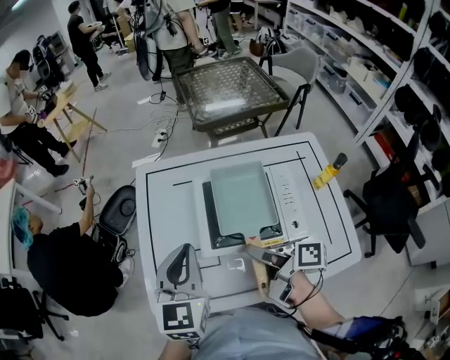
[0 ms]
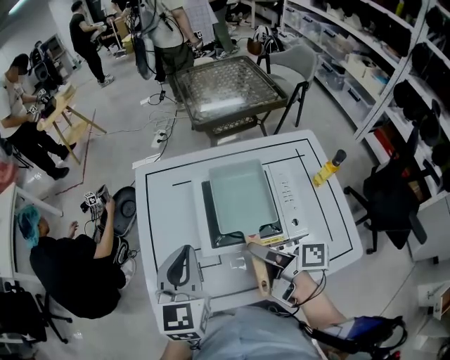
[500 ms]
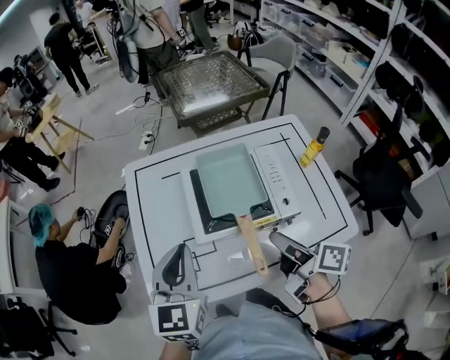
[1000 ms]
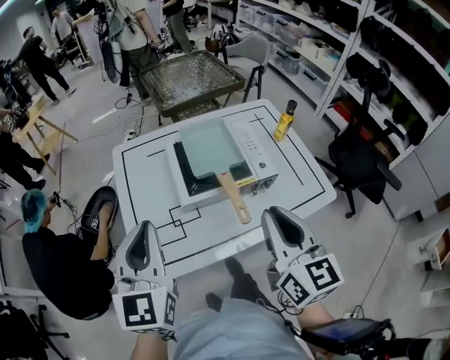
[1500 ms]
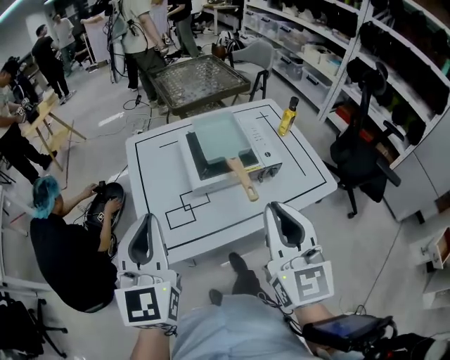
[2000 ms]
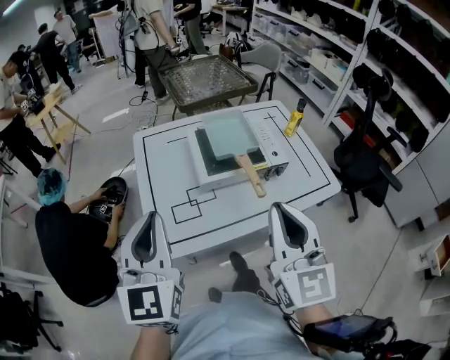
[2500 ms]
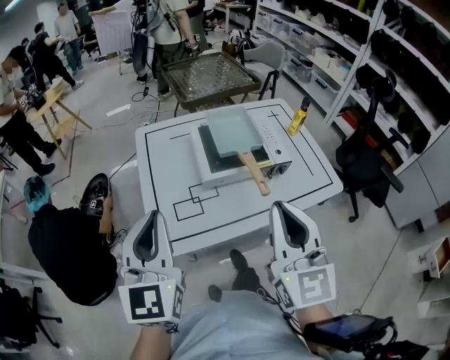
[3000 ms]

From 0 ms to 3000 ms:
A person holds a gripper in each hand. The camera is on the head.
From 0 ms to 1500 ms: The left gripper changes place by roughly 15 cm. The right gripper moves about 25 cm, and rotates around the line of its fingers by roughly 60 degrees, counterclockwise from behind.
From 1500 ms to 3000 ms: The left gripper goes approximately 10 cm backward and to the left. Meanwhile the right gripper moves backward, to the left and upward, approximately 15 cm, and turns by some 20 degrees.

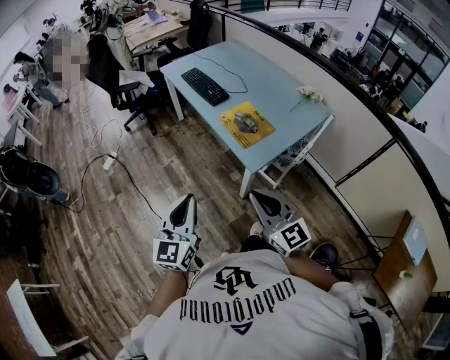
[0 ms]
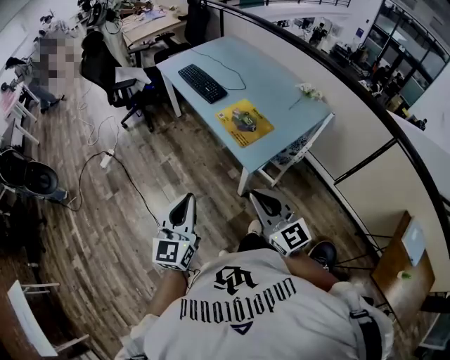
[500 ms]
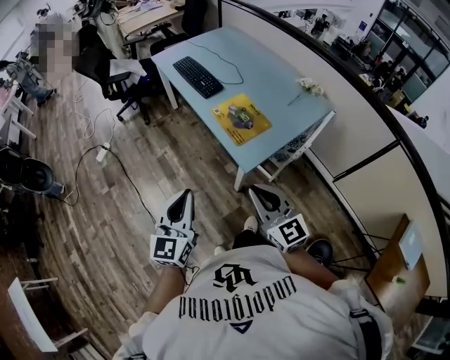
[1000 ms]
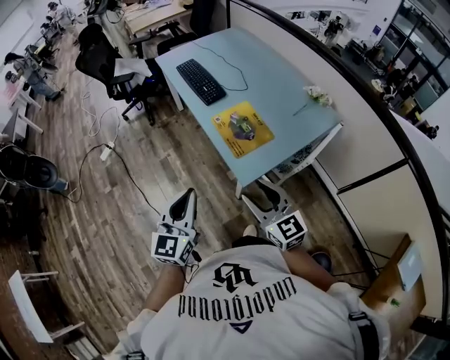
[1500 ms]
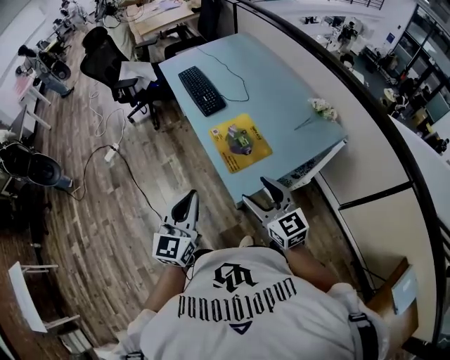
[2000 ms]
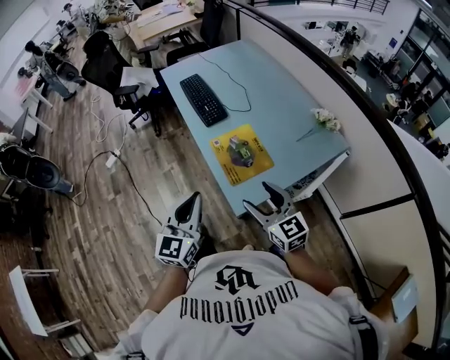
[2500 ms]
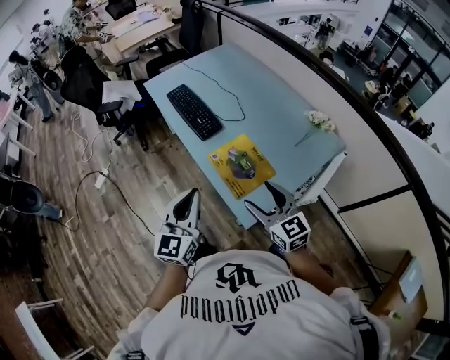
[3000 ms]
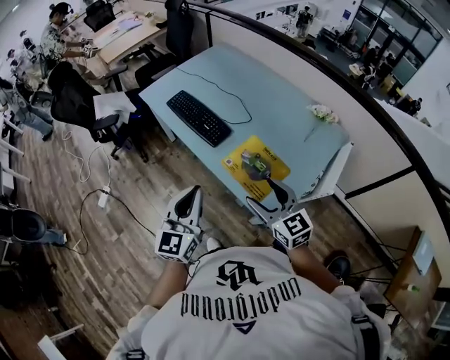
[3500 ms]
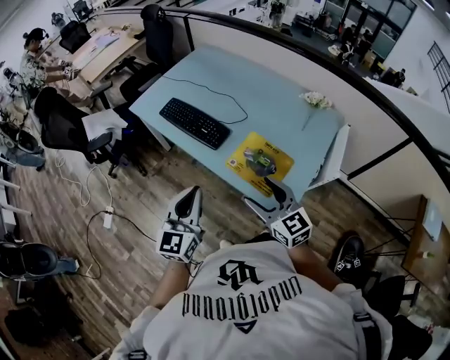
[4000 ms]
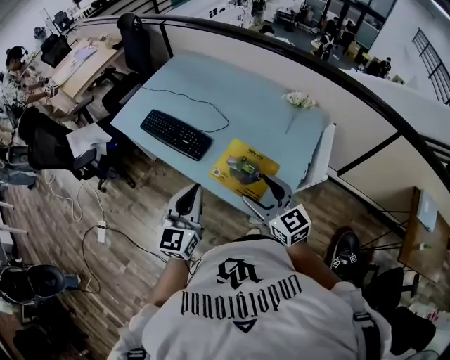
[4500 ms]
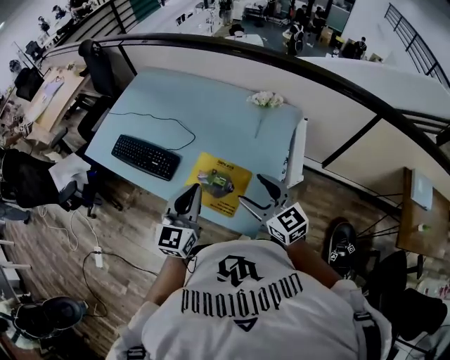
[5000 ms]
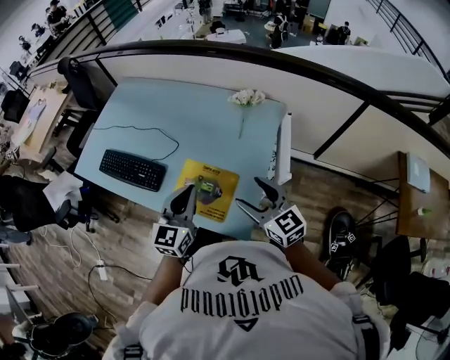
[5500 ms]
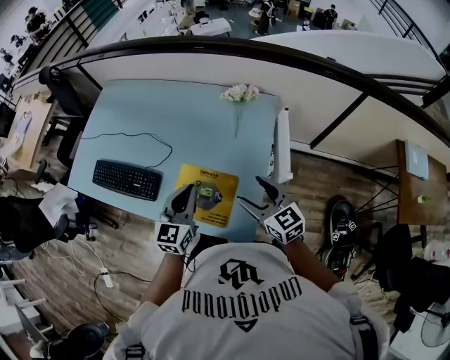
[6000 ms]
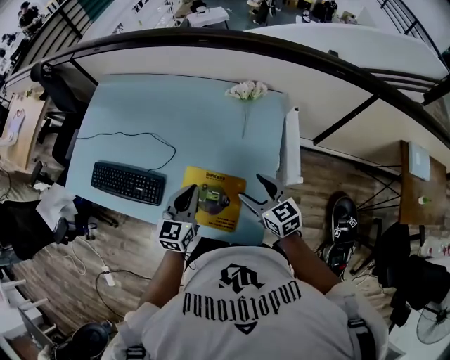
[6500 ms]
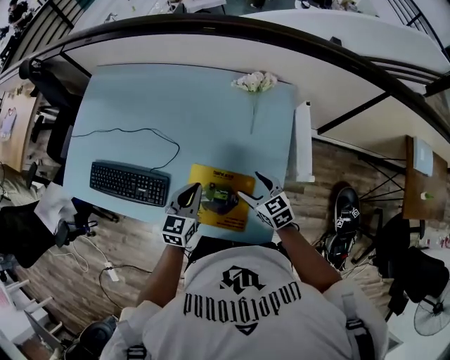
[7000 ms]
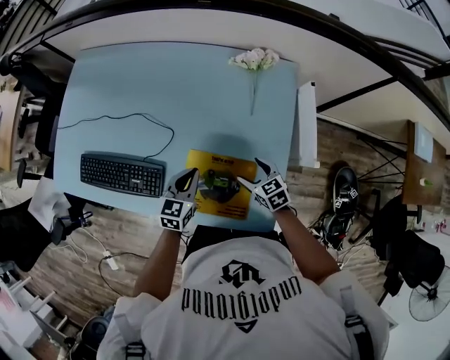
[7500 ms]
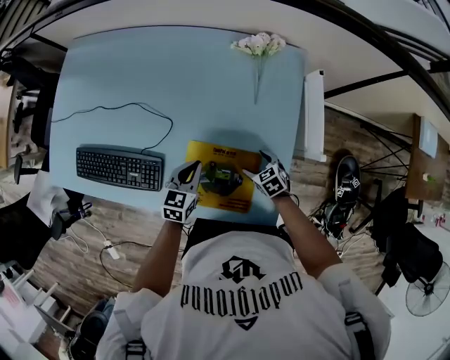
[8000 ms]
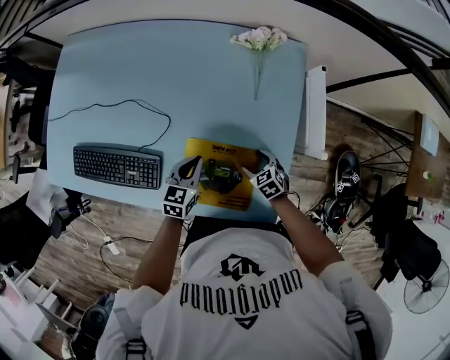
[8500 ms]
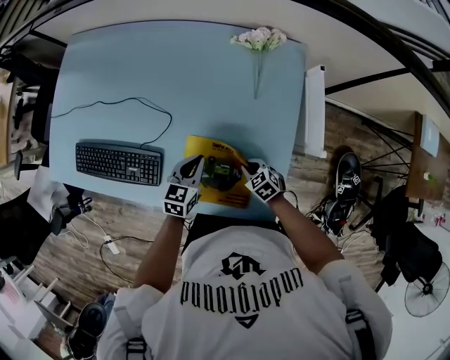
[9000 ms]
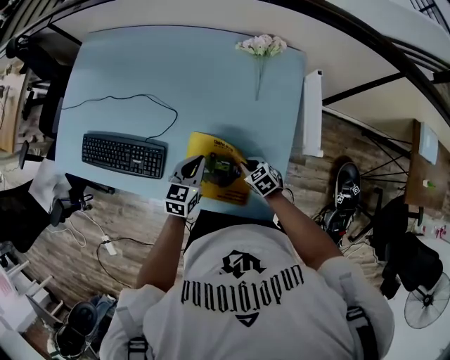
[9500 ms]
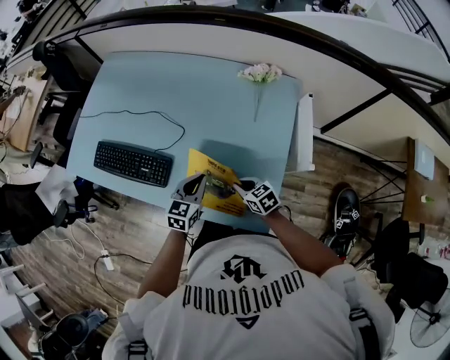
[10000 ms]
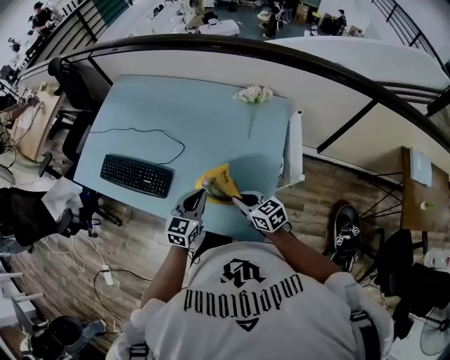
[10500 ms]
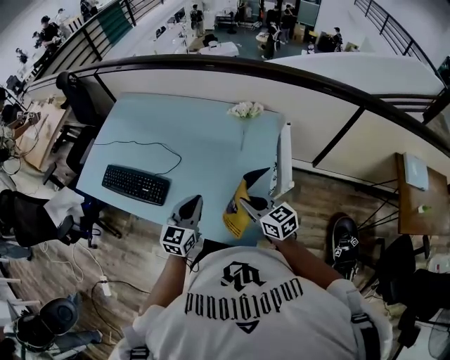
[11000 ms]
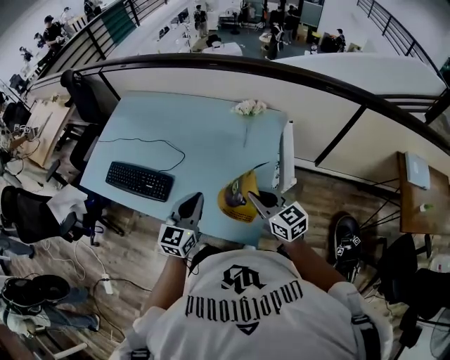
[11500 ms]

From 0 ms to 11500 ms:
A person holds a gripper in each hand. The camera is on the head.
From 0 ms to 2000 ms: The two grippers go some 25 cm forward and to the right. The right gripper opens.
From 2000 ms to 4000 ms: The right gripper heads to the left and forward, covering roughly 25 cm, and turns by roughly 20 degrees. The left gripper heads forward and to the left, covering roughly 30 cm, and changes its angle by approximately 20 degrees.
From 4000 ms to 6000 ms: Both grippers move to the right and forward, approximately 30 cm. The right gripper turns by approximately 20 degrees; the left gripper turns by approximately 30 degrees.
From 6000 ms to 7500 ms: Both grippers move downward and forward, approximately 25 cm. The right gripper changes its angle by roughly 30 degrees; the left gripper rotates approximately 20 degrees.
From 7500 ms to 9500 ms: The right gripper is displaced downward by about 10 cm, and closes up.
From 9500 ms to 11500 ms: The right gripper is displaced upward by some 35 cm, and tips its fingers upward by approximately 40 degrees. Meanwhile the left gripper moves upward and backward, some 25 cm, and swivels about 30 degrees.

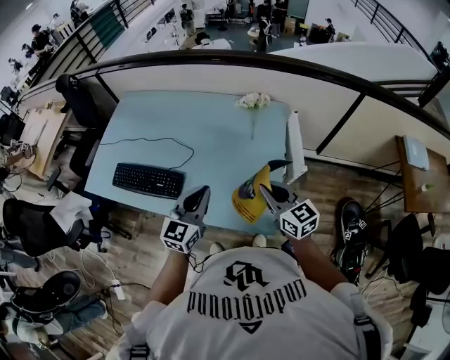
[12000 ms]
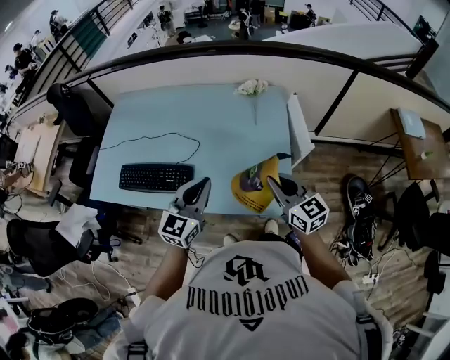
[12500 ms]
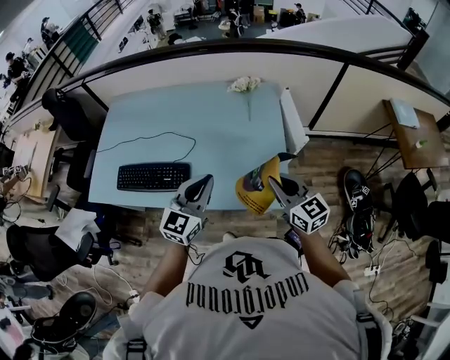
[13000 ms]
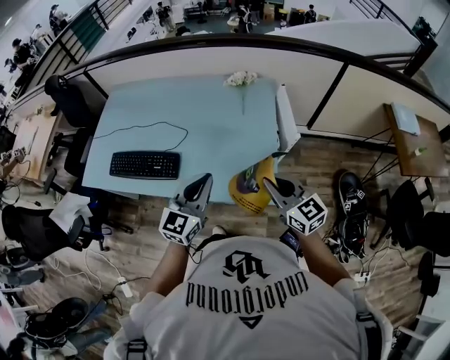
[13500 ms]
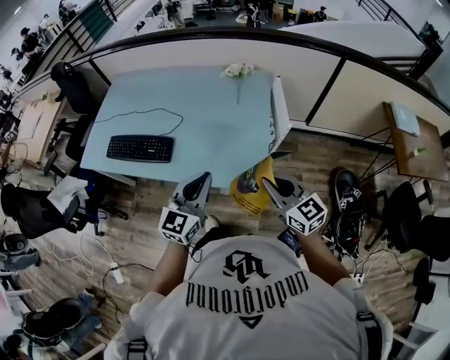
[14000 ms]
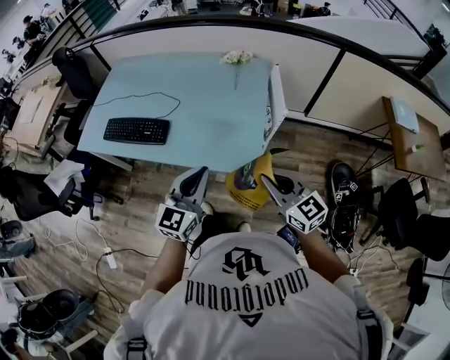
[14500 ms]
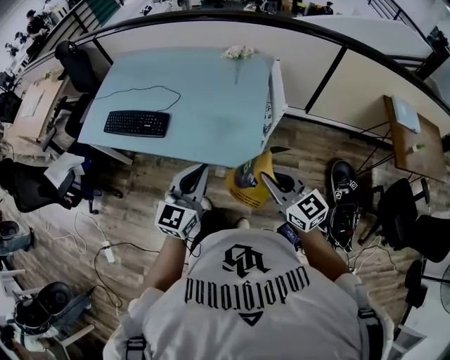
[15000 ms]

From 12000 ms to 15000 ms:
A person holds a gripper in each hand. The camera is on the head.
From 12000 ms to 13500 ms: The grippers both shift backward by roughly 10 cm.
From 13500 ms to 15000 ms: Both grippers move backward and to the right, approximately 15 cm.

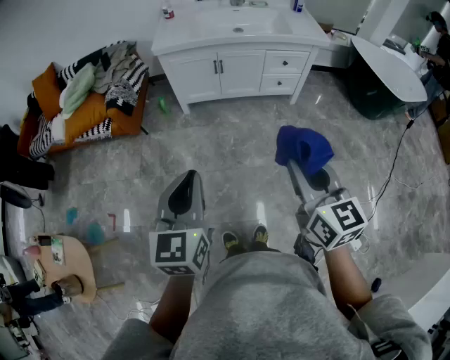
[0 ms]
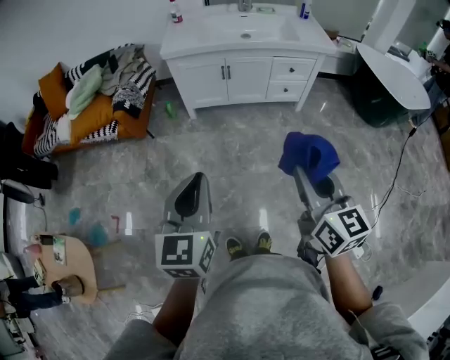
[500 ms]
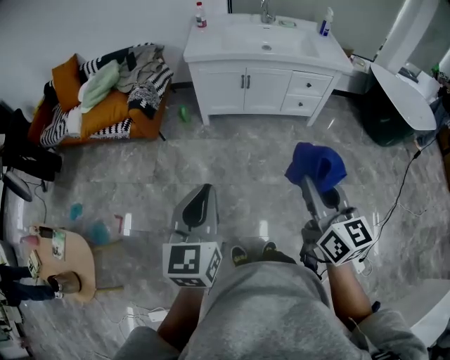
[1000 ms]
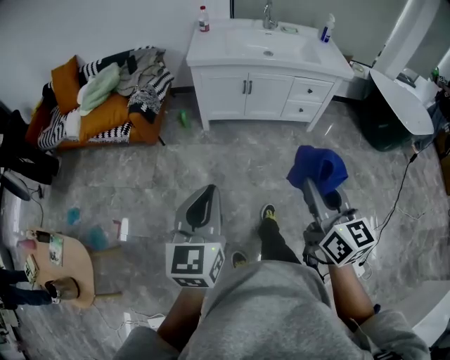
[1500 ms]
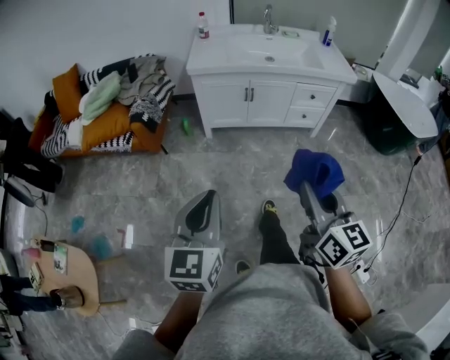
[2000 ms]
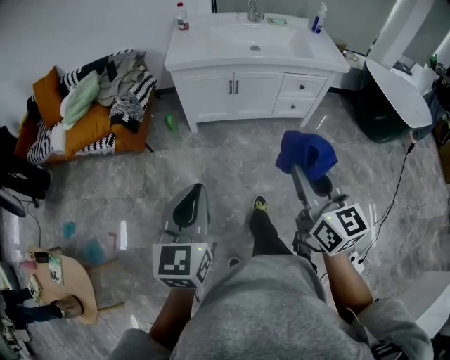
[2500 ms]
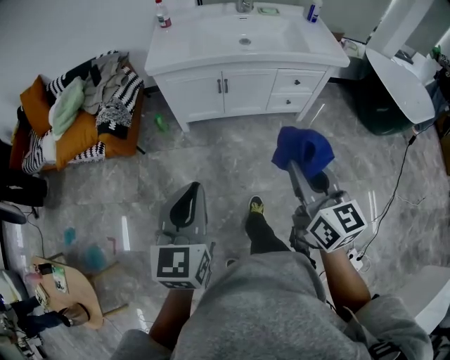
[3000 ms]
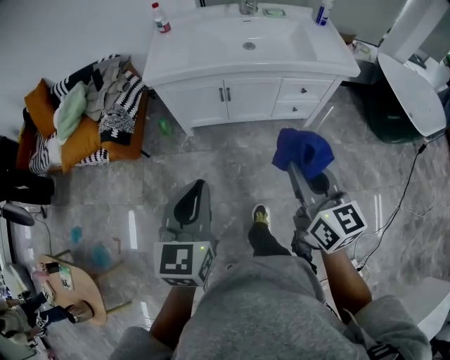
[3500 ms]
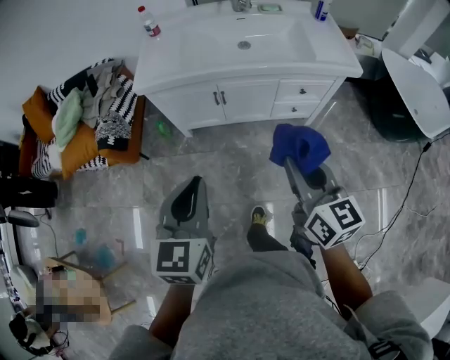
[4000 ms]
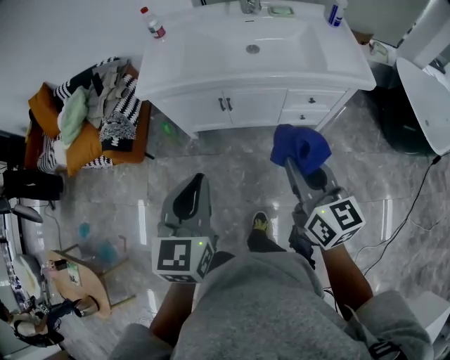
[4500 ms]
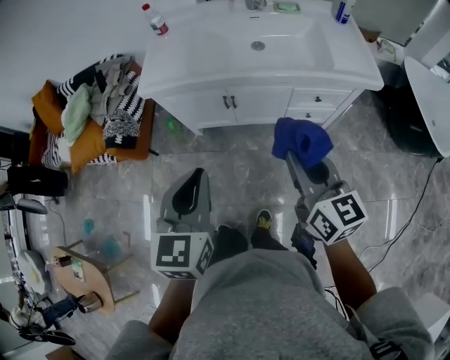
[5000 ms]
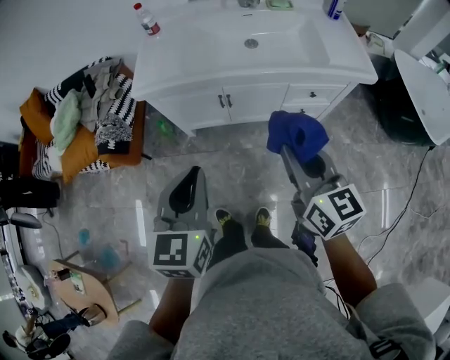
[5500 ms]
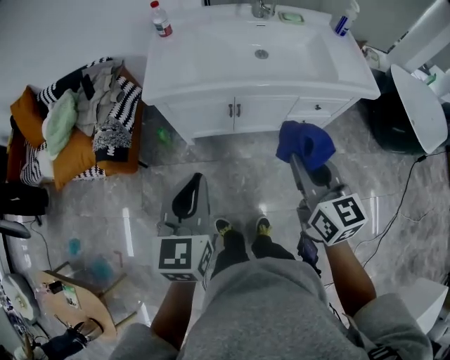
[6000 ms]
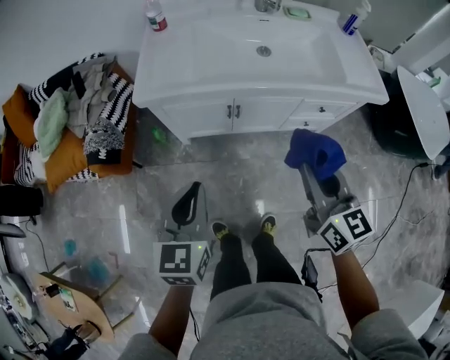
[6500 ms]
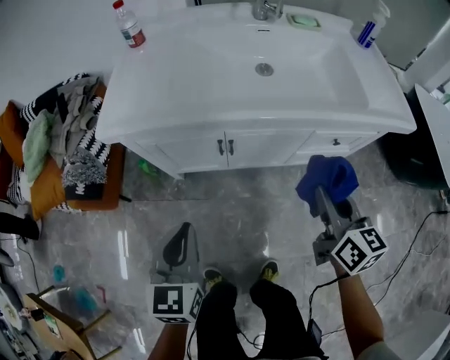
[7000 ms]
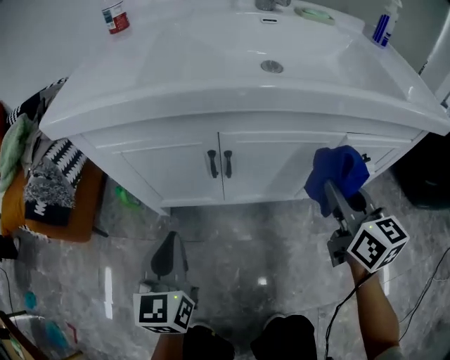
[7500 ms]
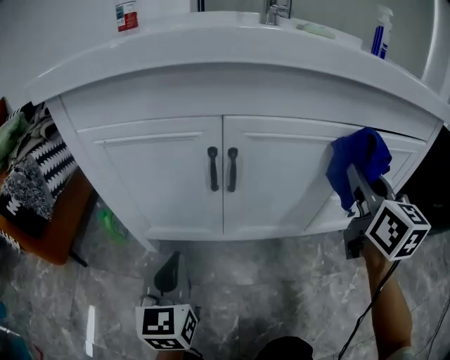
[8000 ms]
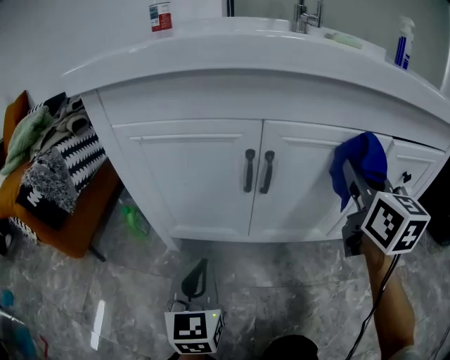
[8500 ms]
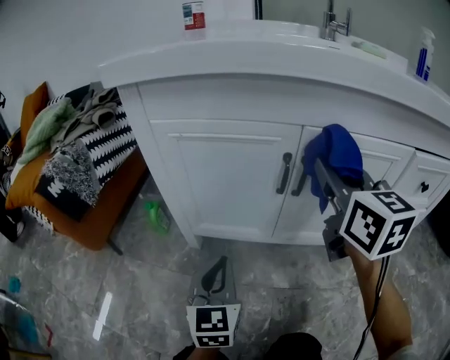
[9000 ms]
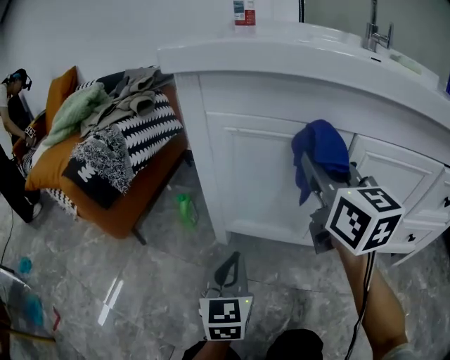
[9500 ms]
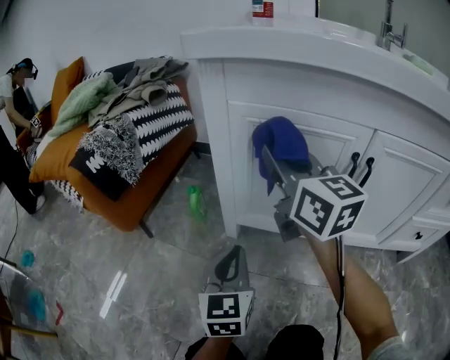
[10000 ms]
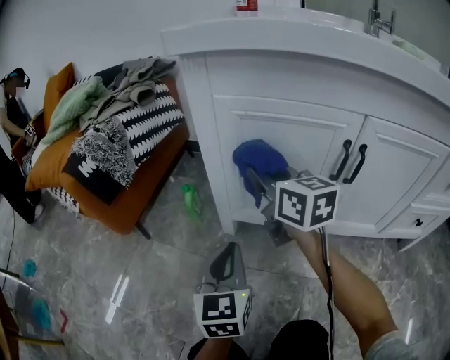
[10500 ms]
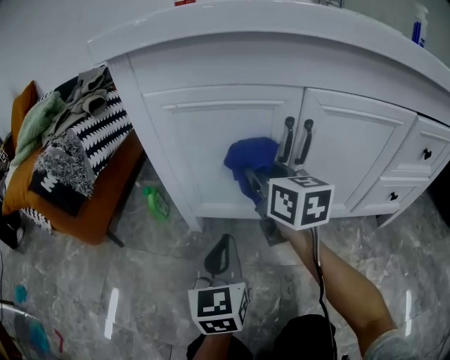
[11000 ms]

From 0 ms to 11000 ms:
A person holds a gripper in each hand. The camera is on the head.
From 0 ms to 2000 ms: The right gripper travels to the left and forward by approximately 10 cm, while the left gripper moves to the left, roughly 10 cm.
From 2000 ms to 3500 ms: The grippers both shift forward and to the right by approximately 25 cm.
From 3500 ms to 5500 ms: The two grippers go approximately 15 cm forward.
From 5500 ms to 7500 ms: The two grippers go some 50 cm downward and forward.
From 7500 ms to 9000 ms: The right gripper shifts approximately 20 cm to the left and forward. Meanwhile the left gripper shifts approximately 15 cm downward.
From 9000 ms to 11000 ms: The left gripper moves approximately 10 cm to the left and comes back; the right gripper moves downward, to the left and forward, approximately 20 cm.
